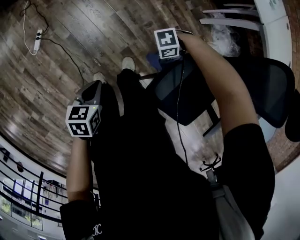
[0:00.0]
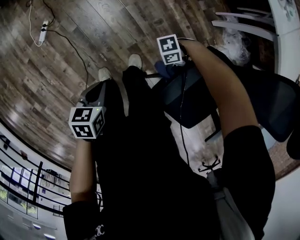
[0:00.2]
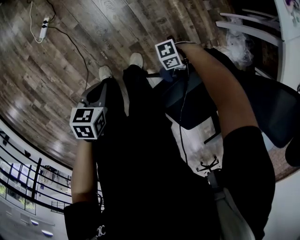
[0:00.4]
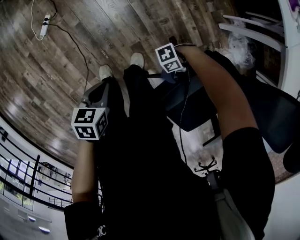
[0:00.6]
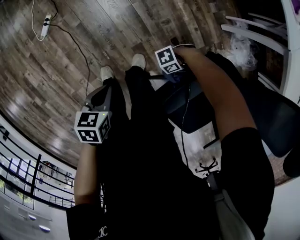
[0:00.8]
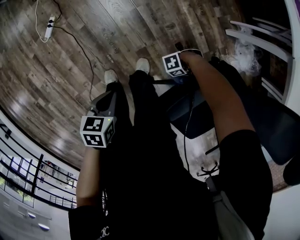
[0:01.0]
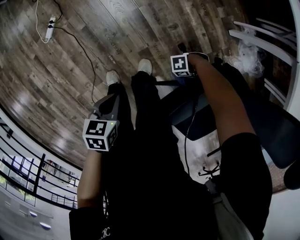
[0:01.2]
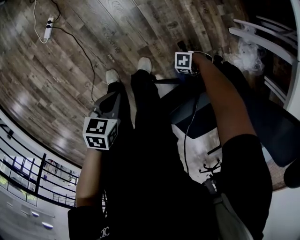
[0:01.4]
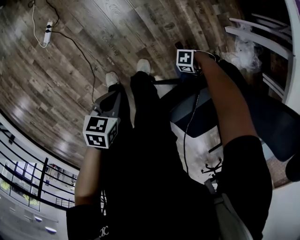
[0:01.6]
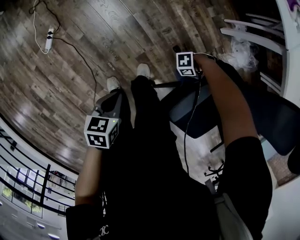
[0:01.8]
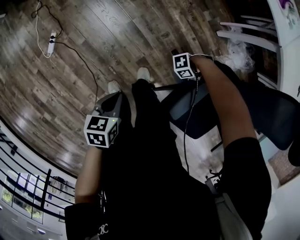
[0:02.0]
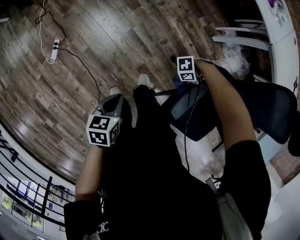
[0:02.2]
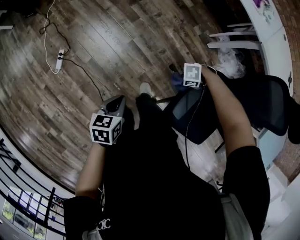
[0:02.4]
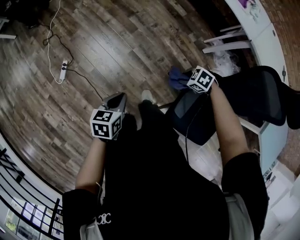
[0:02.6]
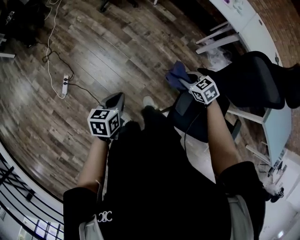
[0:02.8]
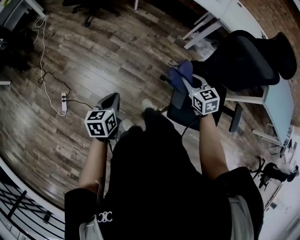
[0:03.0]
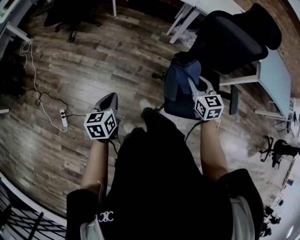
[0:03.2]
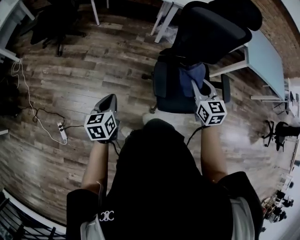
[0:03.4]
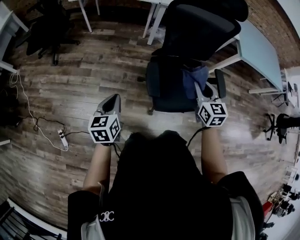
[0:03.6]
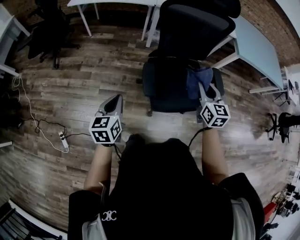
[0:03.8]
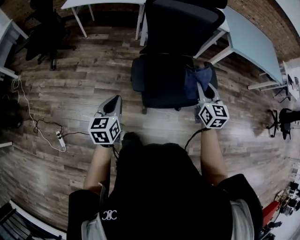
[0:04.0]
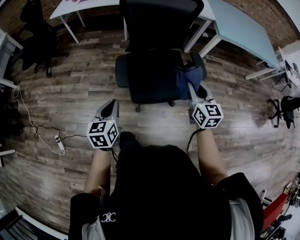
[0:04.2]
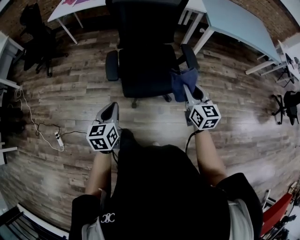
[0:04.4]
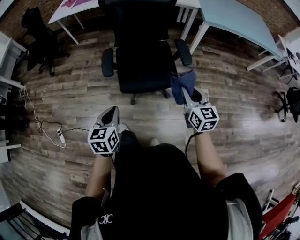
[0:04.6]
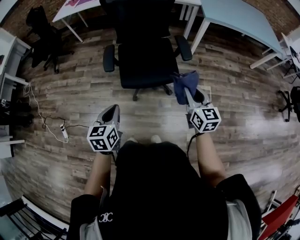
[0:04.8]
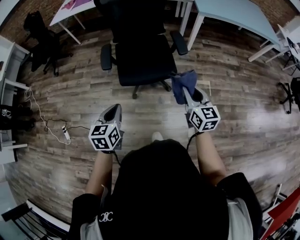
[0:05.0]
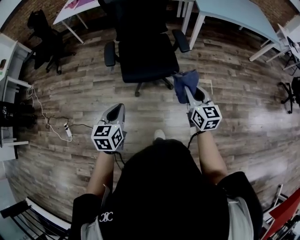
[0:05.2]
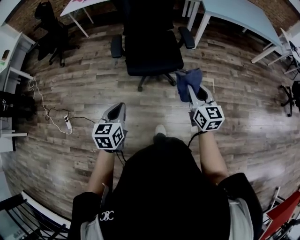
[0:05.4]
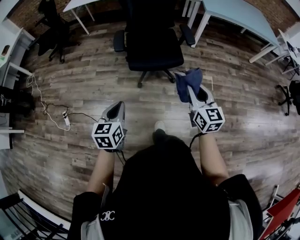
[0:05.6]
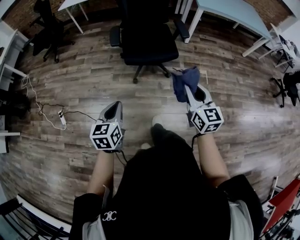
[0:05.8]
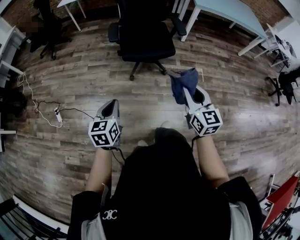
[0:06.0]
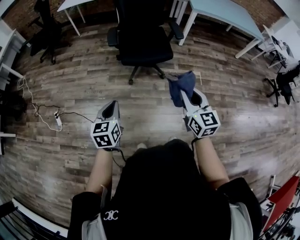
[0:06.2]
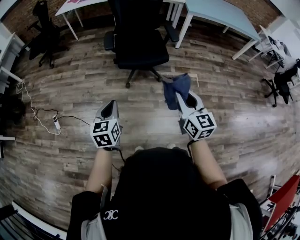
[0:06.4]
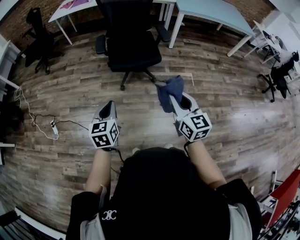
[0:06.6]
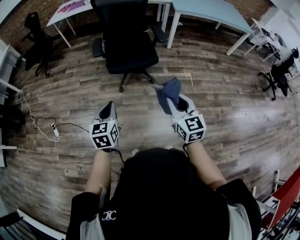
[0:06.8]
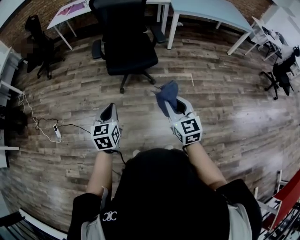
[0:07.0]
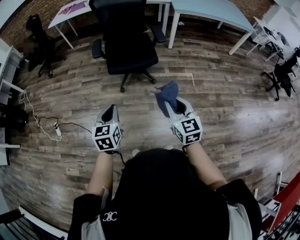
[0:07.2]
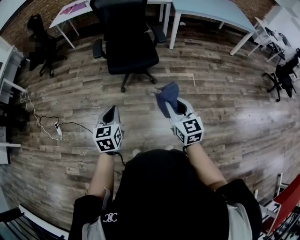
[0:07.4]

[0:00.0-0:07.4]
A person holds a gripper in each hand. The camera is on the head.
0:00.0 to 0:01.4: The right gripper goes roughly 20 cm downward and forward; the left gripper heads downward, covering roughly 5 cm.
0:01.4 to 0:03.0: The right gripper goes approximately 40 cm upward, and turns by about 120 degrees, while the left gripper moves upward, about 15 cm, and rotates roughly 30 degrees.
0:03.0 to 0:04.4: The right gripper ends up roughly 50 cm from where it was, and changes its angle by approximately 50 degrees. Meanwhile the left gripper ends up about 40 cm from where it was, and swivels about 30 degrees.
0:04.4 to 0:06.0: Both grippers travel together backward, some 30 cm.
0:06.0 to 0:07.4: The right gripper shifts approximately 5 cm to the right. The left gripper heads to the right, covering approximately 15 cm.

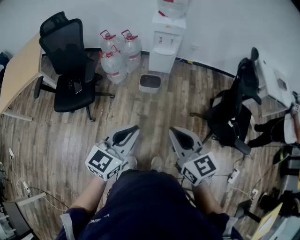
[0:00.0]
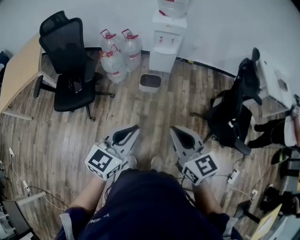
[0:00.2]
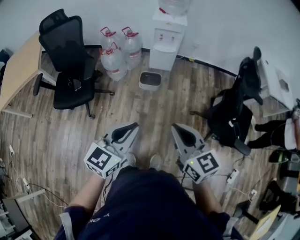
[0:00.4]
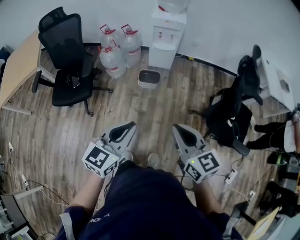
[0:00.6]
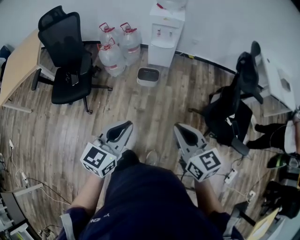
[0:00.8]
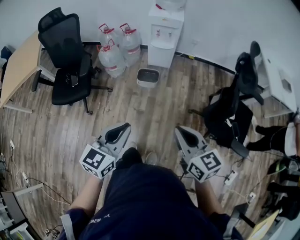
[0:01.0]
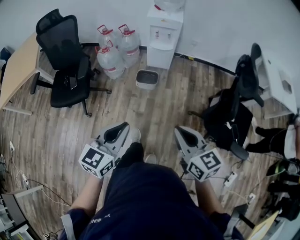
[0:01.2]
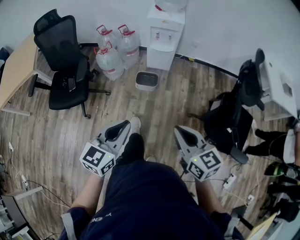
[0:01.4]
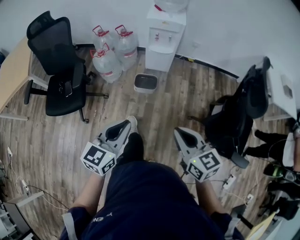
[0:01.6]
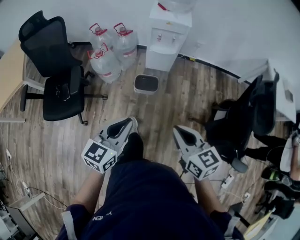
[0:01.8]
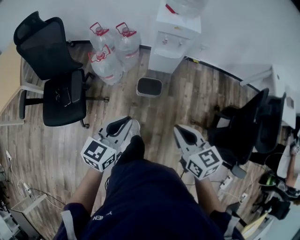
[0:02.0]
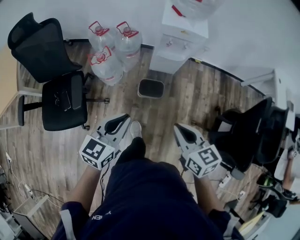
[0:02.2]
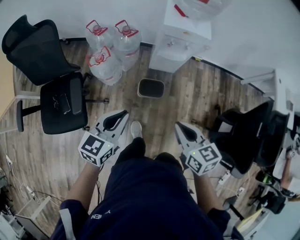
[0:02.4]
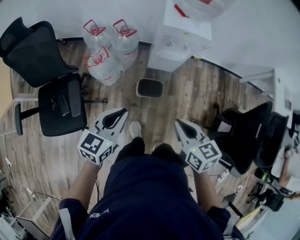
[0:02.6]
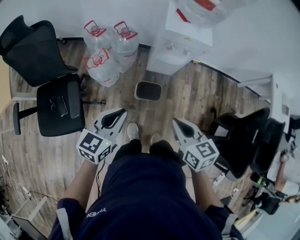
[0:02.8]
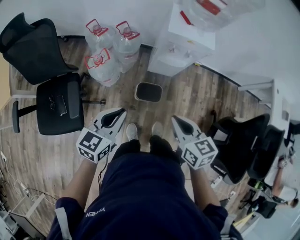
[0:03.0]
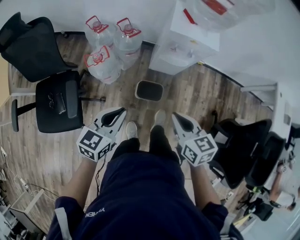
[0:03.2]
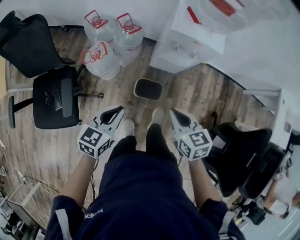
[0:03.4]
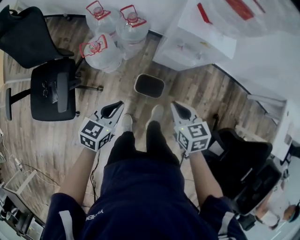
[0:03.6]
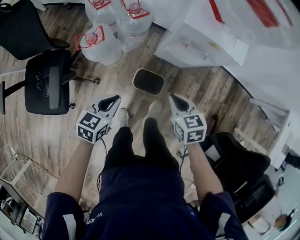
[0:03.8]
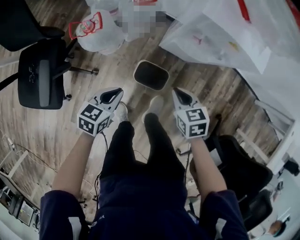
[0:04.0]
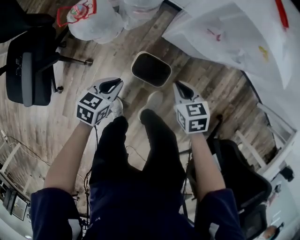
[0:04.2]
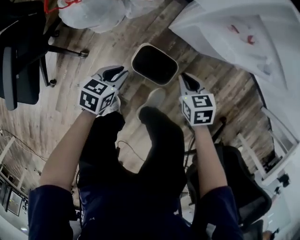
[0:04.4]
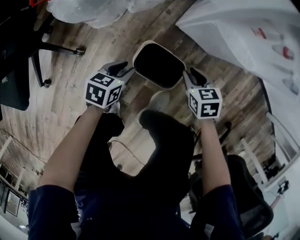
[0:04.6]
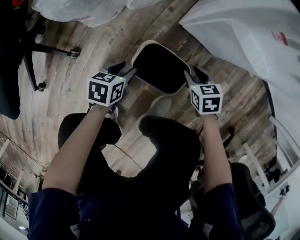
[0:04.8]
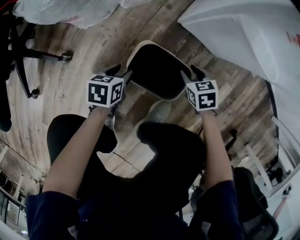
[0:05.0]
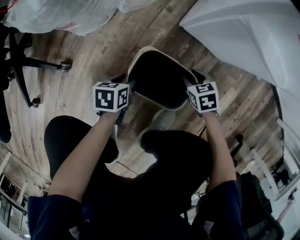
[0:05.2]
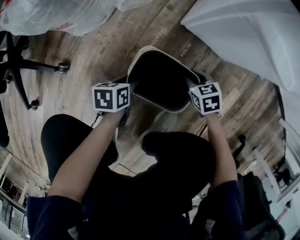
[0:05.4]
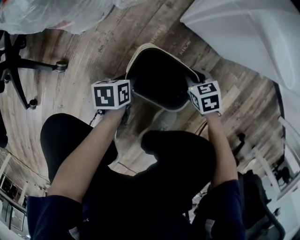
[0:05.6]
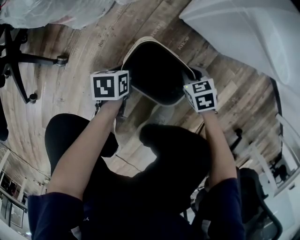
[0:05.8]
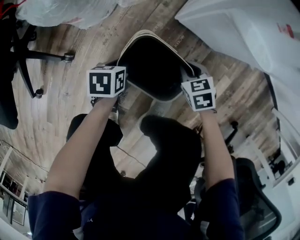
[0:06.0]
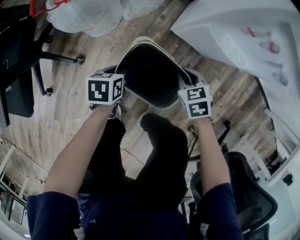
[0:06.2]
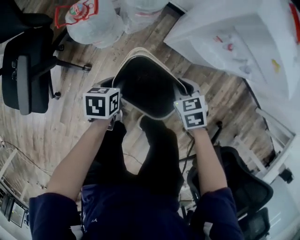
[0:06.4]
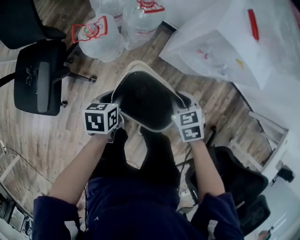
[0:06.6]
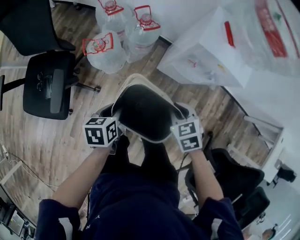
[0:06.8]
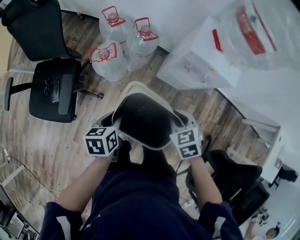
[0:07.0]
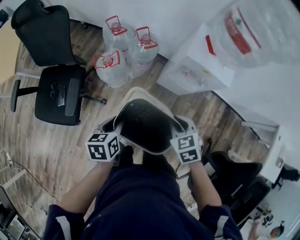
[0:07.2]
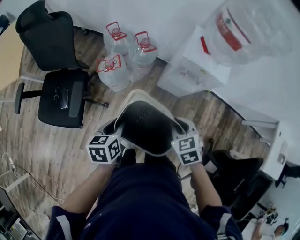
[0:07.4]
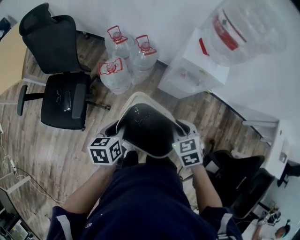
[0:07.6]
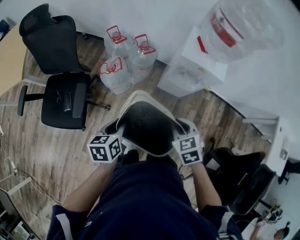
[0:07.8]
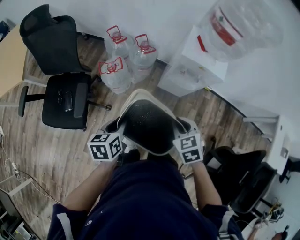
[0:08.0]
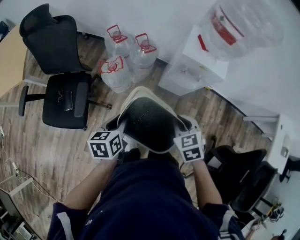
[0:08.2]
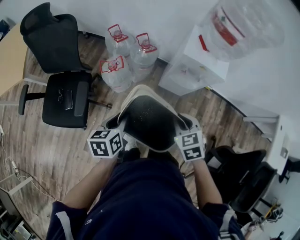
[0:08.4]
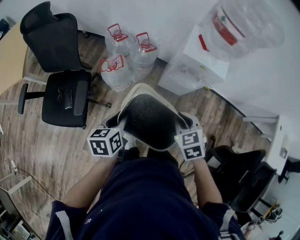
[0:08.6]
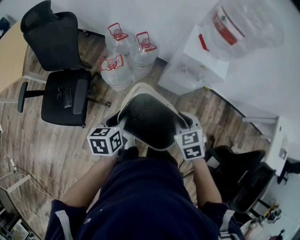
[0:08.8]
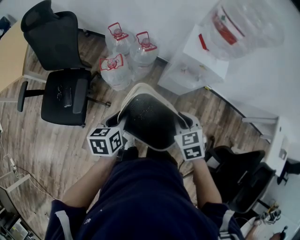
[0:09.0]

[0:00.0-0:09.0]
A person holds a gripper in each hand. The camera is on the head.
0:00.0 to 0:01.6: The right gripper goes approximately 15 cm forward, to the right and downward. The left gripper goes approximately 15 cm forward and downward.
0:01.6 to 0:03.0: The left gripper heads forward and to the left, covering roughly 40 cm; the right gripper heads forward, covering some 35 cm.
0:03.0 to 0:04.4: The right gripper goes approximately 50 cm downward and forward, and turns by some 30 degrees, while the left gripper moves downward, about 50 cm, and turns by approximately 30 degrees.
0:04.4 to 0:06.0: The two grippers go approximately 20 cm downward. The right gripper opens, then closes once more. Meanwhile the left gripper rotates approximately 20 degrees, and opens, then closes again.
0:06.0 to 0:07.6: Both grippers move upward, roughly 60 cm. The left gripper swivels some 20 degrees.
0:07.6 to 0:09.0: There are only small adjustments of the grippers.

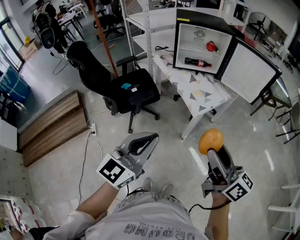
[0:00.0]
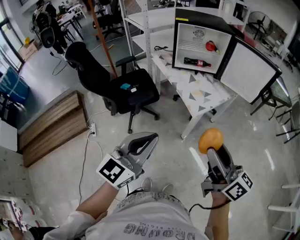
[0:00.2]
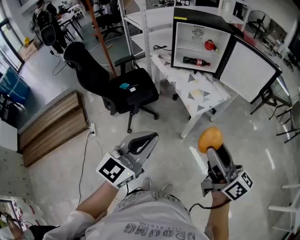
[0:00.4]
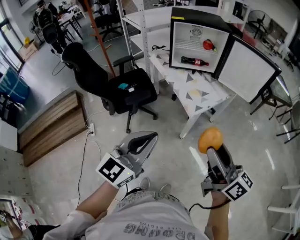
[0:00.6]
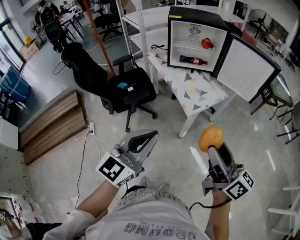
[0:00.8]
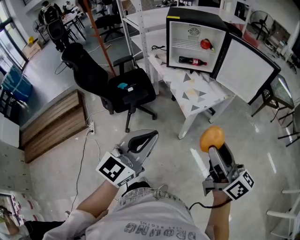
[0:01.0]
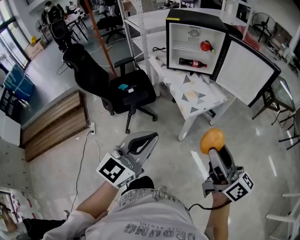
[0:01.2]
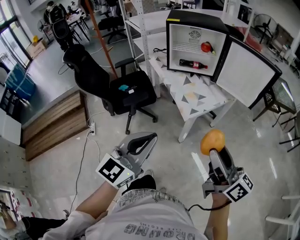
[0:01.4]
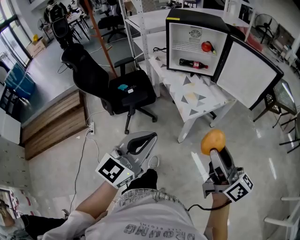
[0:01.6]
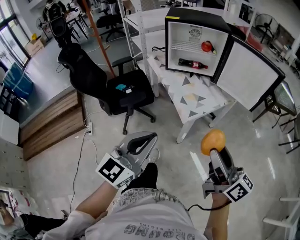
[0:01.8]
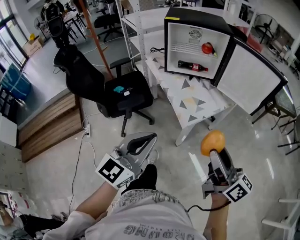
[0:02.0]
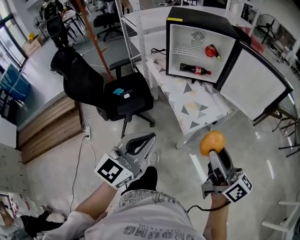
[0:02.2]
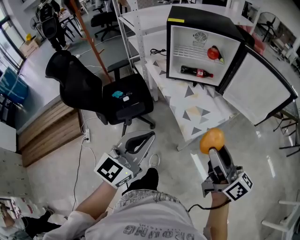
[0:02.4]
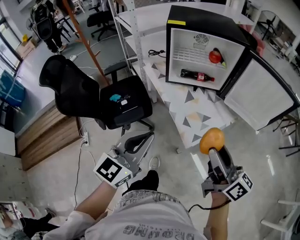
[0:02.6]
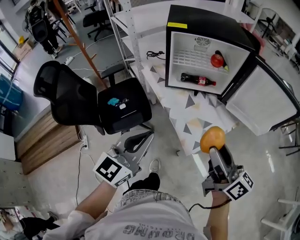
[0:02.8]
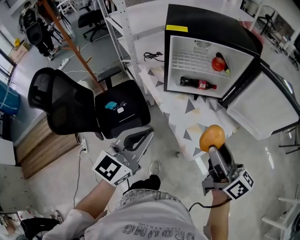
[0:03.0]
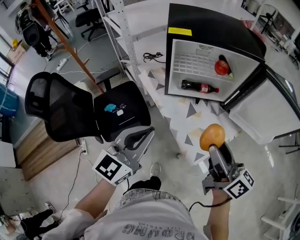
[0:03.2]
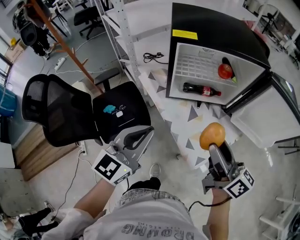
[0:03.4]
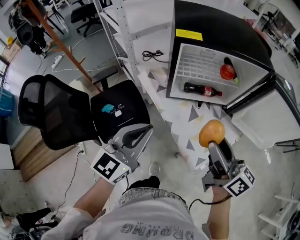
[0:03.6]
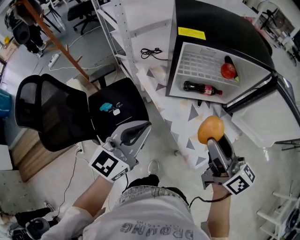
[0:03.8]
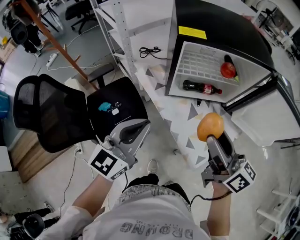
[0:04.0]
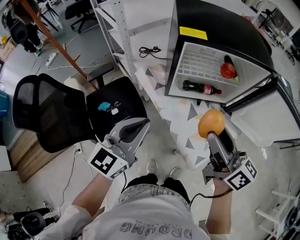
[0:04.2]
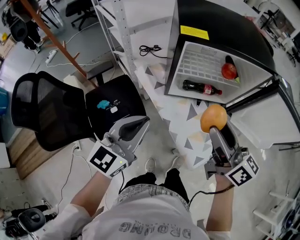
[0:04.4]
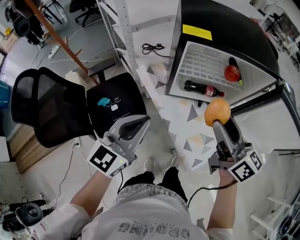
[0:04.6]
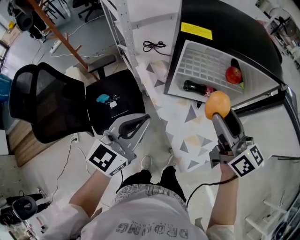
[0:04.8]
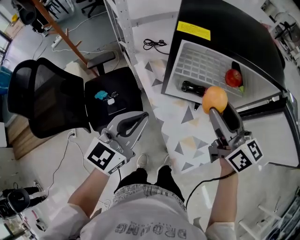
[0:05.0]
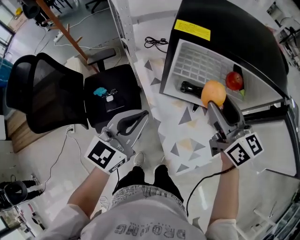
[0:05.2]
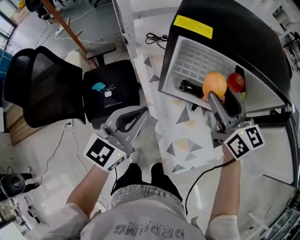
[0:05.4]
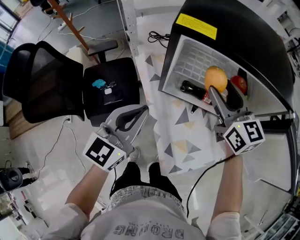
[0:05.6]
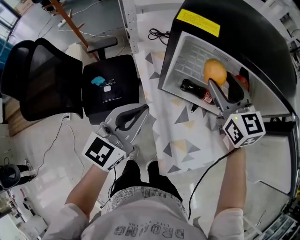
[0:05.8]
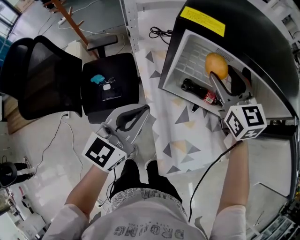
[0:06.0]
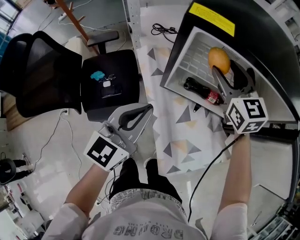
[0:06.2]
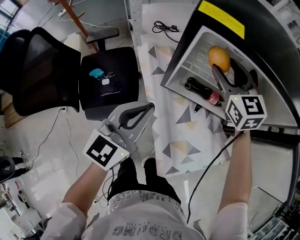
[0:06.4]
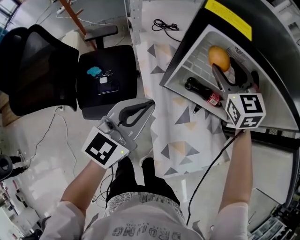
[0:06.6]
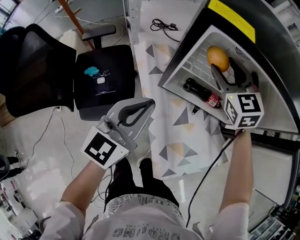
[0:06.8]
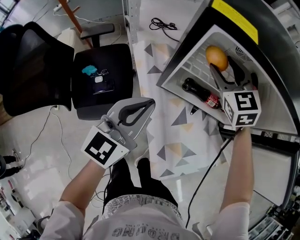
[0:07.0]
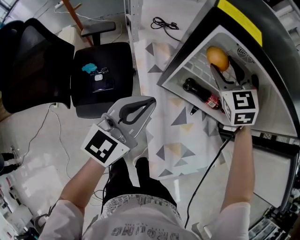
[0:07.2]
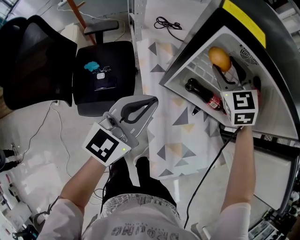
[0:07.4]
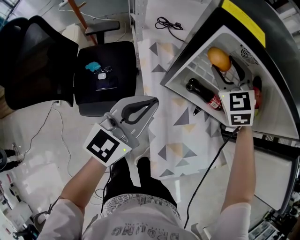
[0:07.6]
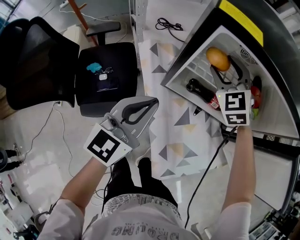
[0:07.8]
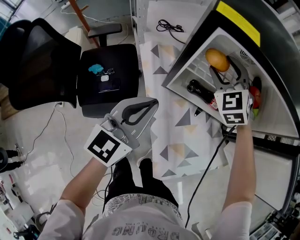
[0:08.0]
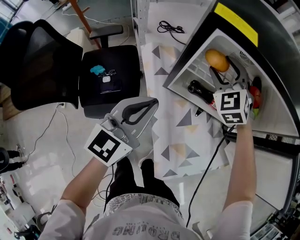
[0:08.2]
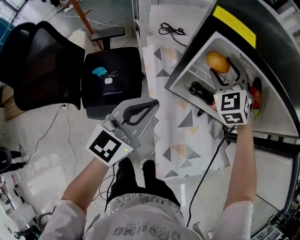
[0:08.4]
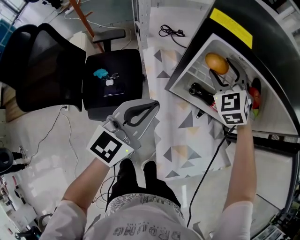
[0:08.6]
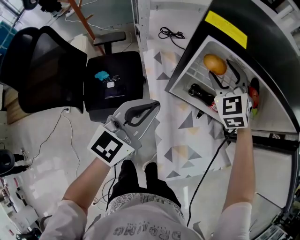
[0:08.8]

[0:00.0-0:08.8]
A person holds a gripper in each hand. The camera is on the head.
0:00.0 to 0:01.4: The two grippers go about 10 cm to the right.
0:01.4 to 0:03.0: The two grippers go about 35 cm forward.
0:03.0 to 0:04.4: The grippers both shift forward and to the left by roughly 15 cm.
0:04.4 to 0:05.8: The right gripper shifts some 20 cm forward, and turns by about 40 degrees; the left gripper moves to the right and forward, roughly 10 cm.
0:05.8 to 0:07.4: The right gripper moves forward and downward, approximately 10 cm, and rotates roughly 30 degrees; the left gripper moves some 5 cm.
0:07.4 to 0:08.8: The grippers move only a little.
